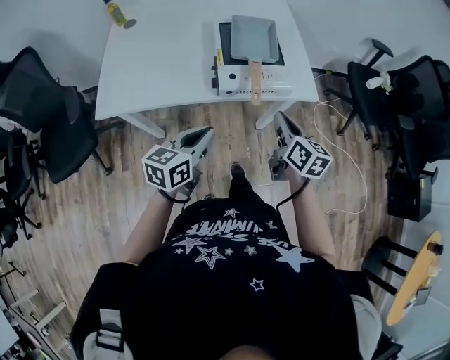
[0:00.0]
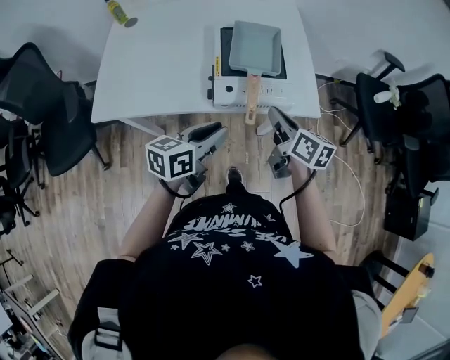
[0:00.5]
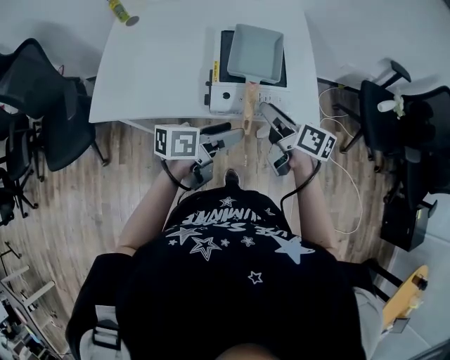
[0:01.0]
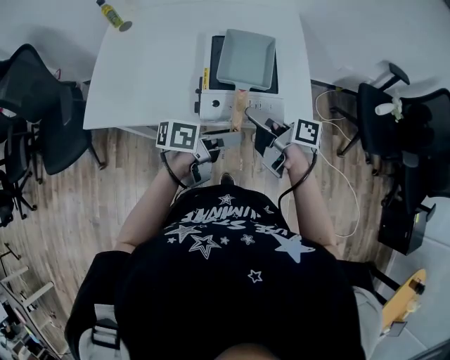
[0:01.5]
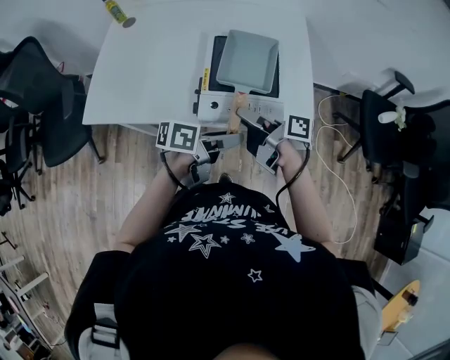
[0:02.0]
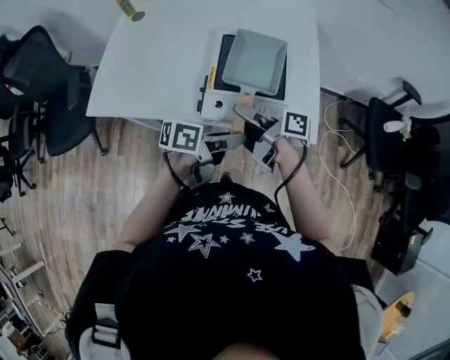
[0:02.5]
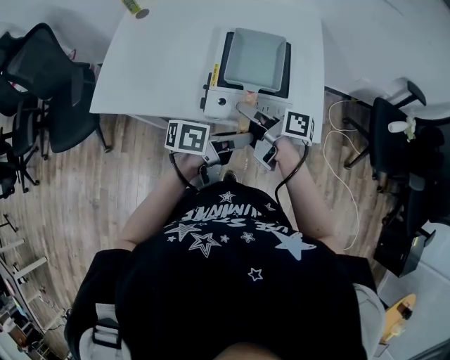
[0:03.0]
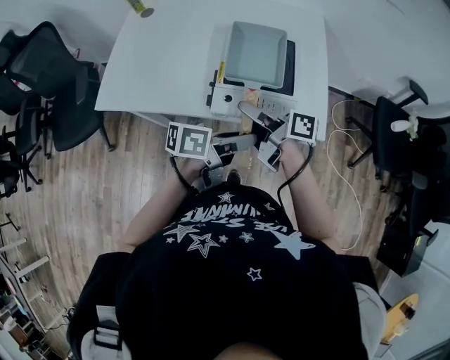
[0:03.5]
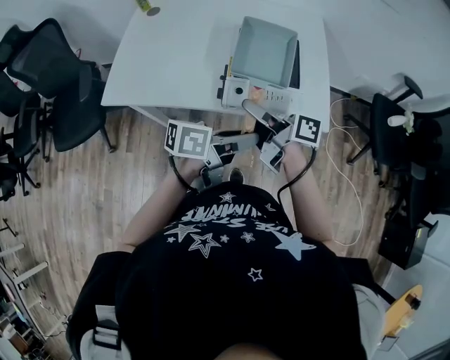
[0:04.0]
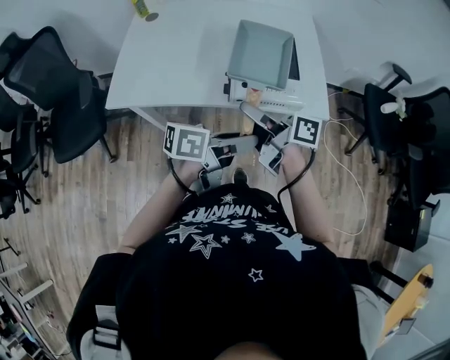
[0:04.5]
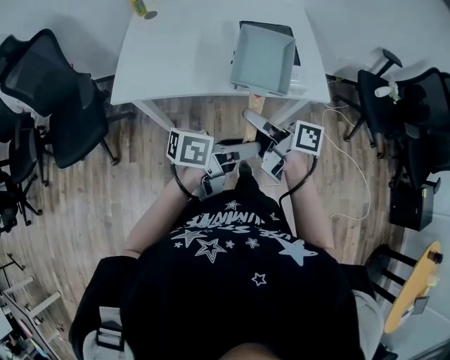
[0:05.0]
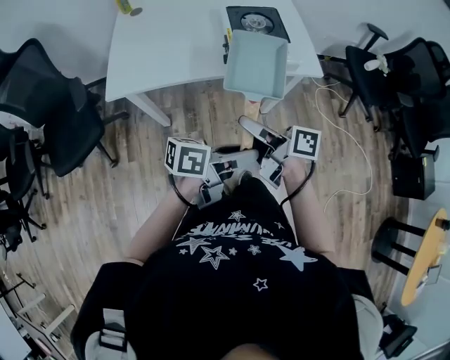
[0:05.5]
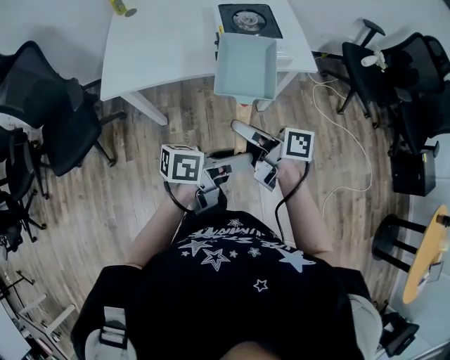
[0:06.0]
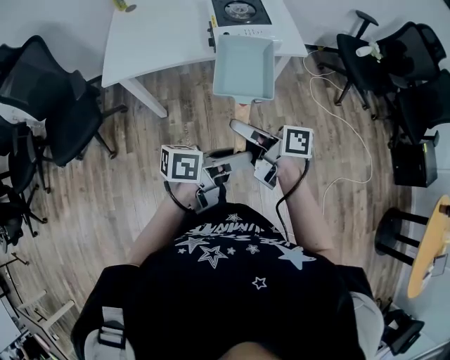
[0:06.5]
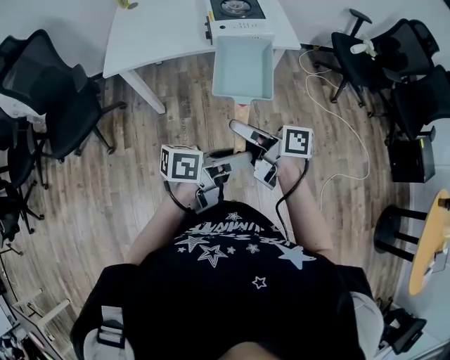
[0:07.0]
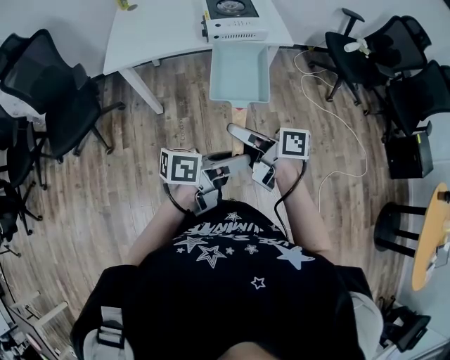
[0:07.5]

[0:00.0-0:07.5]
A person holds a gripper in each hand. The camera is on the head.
0:00.0 to 0:02.0: The left gripper shifts some 20 cm forward and to the right, swivels approximately 40 degrees, and opens its fingers. The right gripper moves forward and to the left, about 15 cm, rotates roughly 60 degrees, and opens its fingers.
0:02.0 to 0:04.0: The right gripper shifts approximately 10 cm upward, to the left and backward, and closes; the left gripper shifts roughly 10 cm backward and upward, and closes.
0:04.0 to 0:05.5: Both grippers travel together backward, approximately 25 cm.
0:05.5 to 0:07.5: The left gripper shifts by approximately 20 cm; the right gripper shifts by some 20 cm.

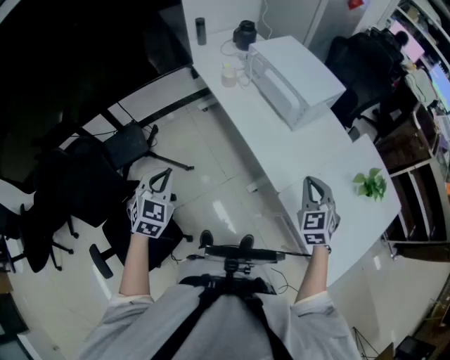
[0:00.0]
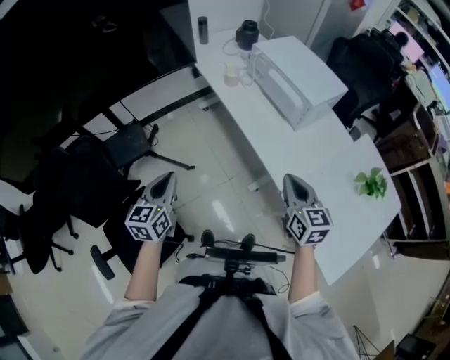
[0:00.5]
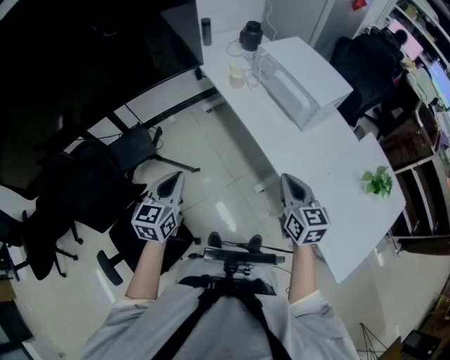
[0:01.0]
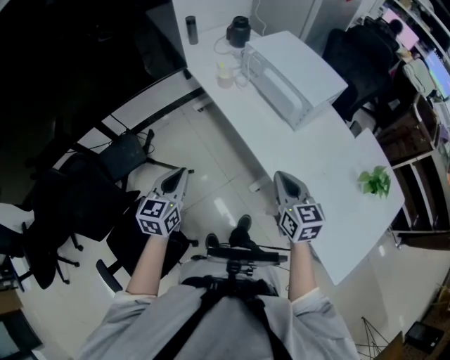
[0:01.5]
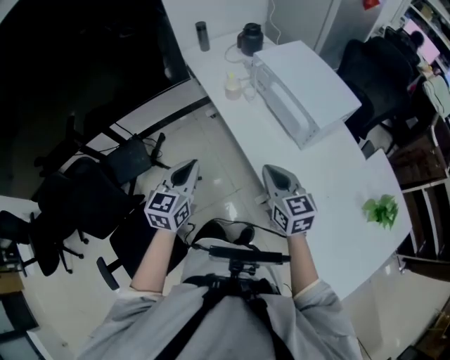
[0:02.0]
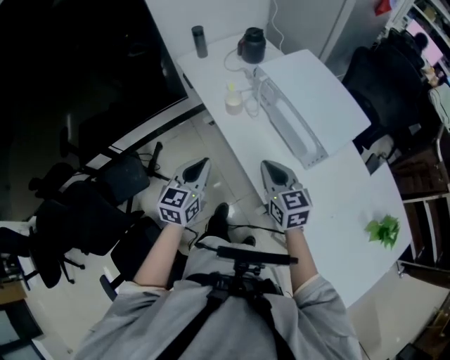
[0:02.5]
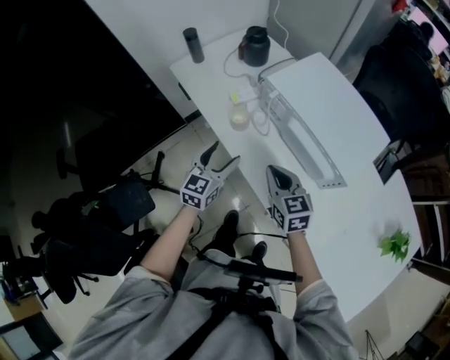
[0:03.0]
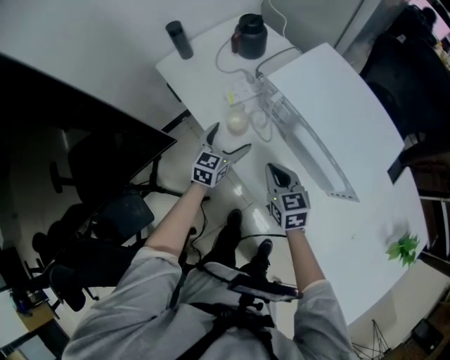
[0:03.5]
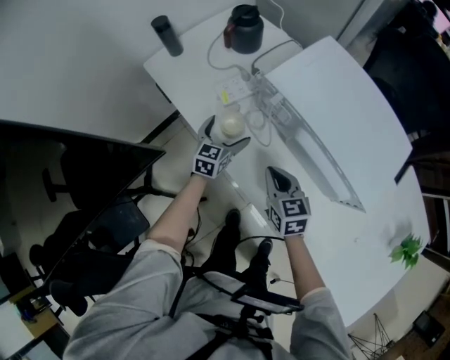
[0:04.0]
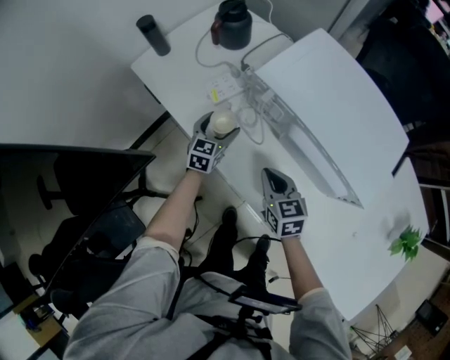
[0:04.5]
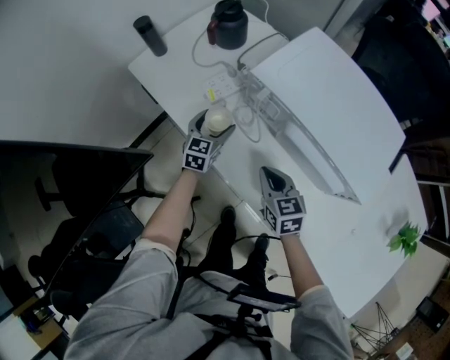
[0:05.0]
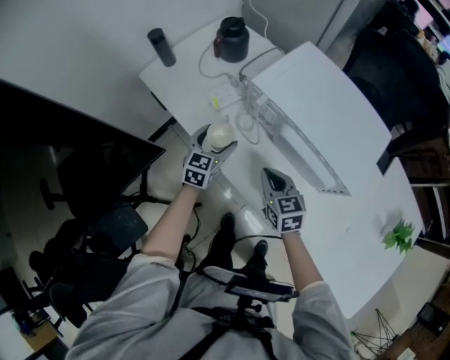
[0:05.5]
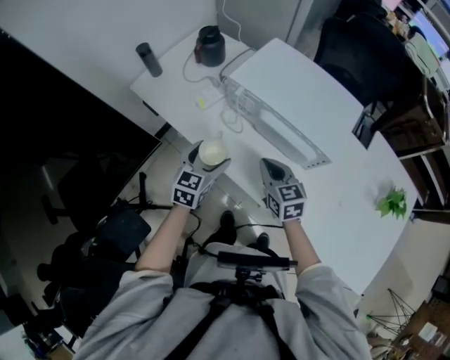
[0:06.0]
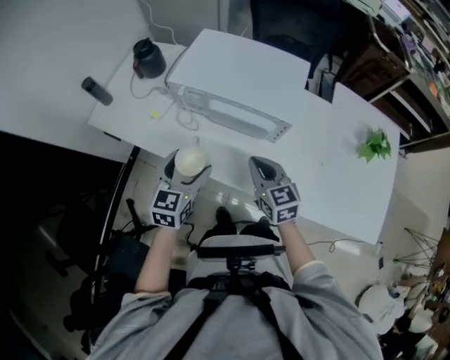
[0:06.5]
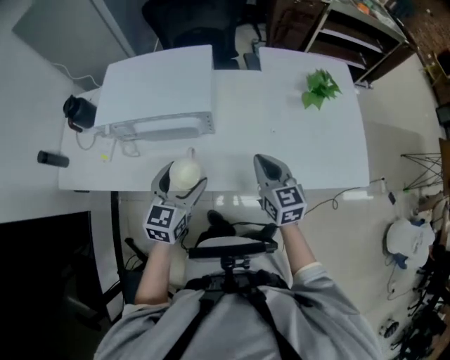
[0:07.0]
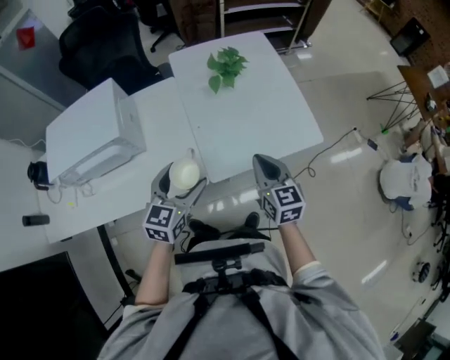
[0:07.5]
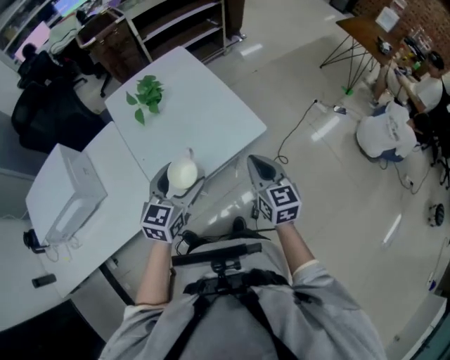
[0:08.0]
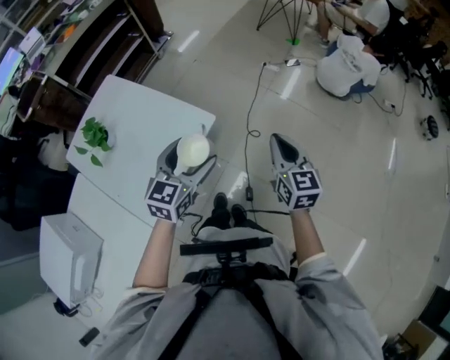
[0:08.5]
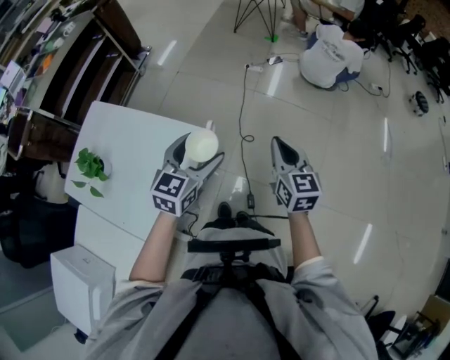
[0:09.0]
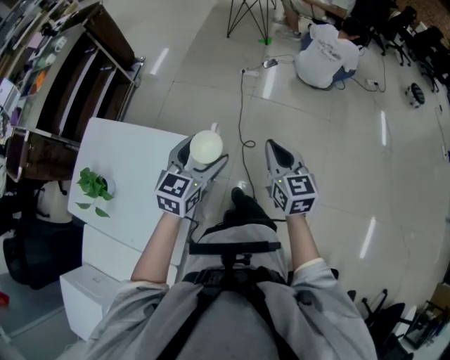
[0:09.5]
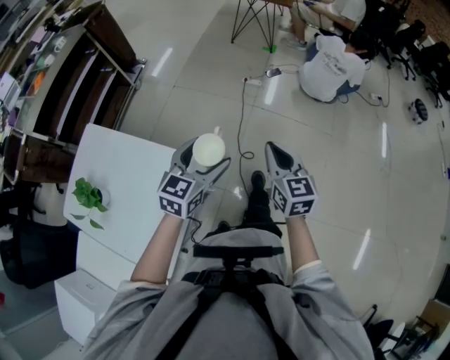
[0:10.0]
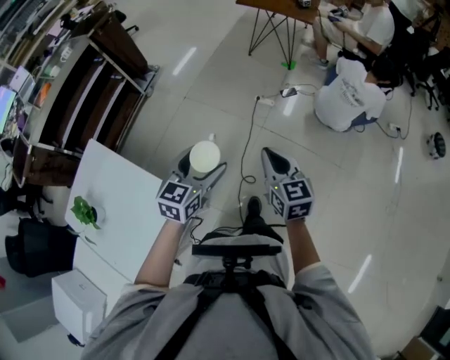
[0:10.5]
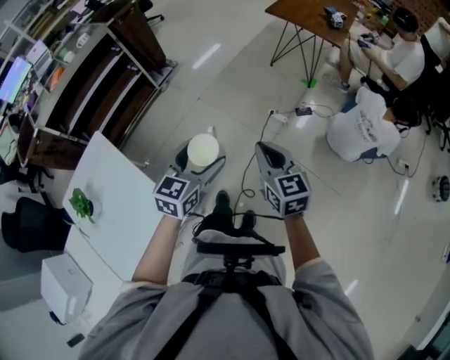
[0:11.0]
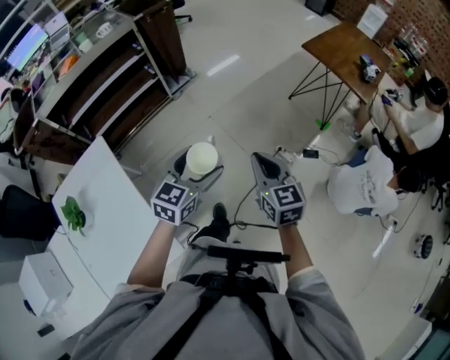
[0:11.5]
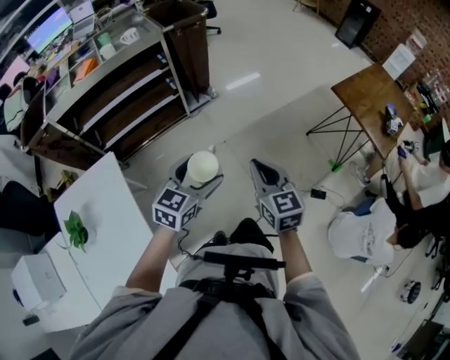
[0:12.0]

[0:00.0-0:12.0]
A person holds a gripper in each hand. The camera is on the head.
0:00.0 to 0:02.0: The left gripper is displaced forward and to the right by approximately 15 cm, and turns by some 30 degrees. The right gripper travels forward and to the left by about 20 cm, and rotates some 40 degrees.
0:02.0 to 0:04.0: Both grippers travel together forward and downward, about 50 cm. The left gripper opens up. The right gripper rotates about 20 degrees.
0:04.0 to 0:06.0: The right gripper shifts approximately 10 cm upward and backward; the left gripper travels upward and backward by roughly 25 cm.
0:06.0 to 0:08.0: The pair of grippers is taken roughly 70 cm. The right gripper swivels some 80 degrees; the left gripper swivels some 70 degrees.
0:08.0 to 0:10.0: The right gripper changes place by roughly 30 cm, and turns by roughly 40 degrees. Meanwhile the left gripper ends up about 40 cm from where it was, and rotates approximately 40 degrees.
0:10.0 to 0:12.0: The two grippers travel together, some 60 cm. The left gripper rotates about 40 degrees, while the right gripper rotates roughly 40 degrees.

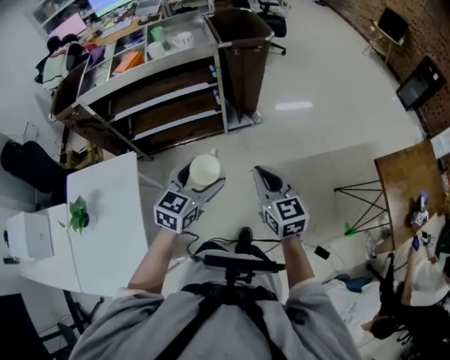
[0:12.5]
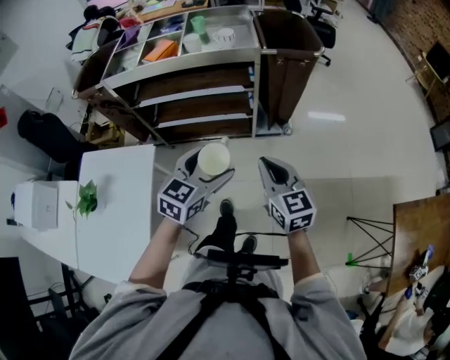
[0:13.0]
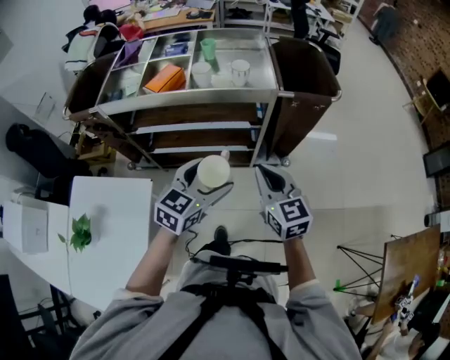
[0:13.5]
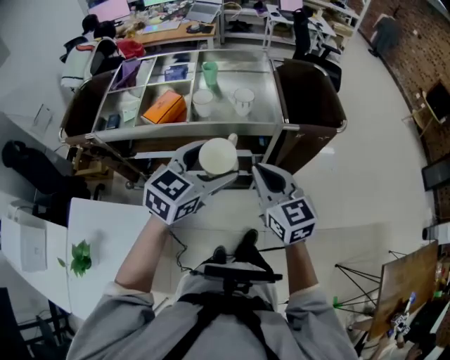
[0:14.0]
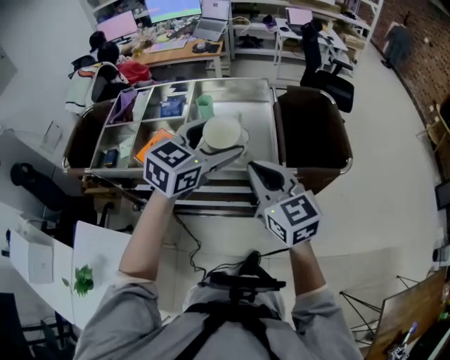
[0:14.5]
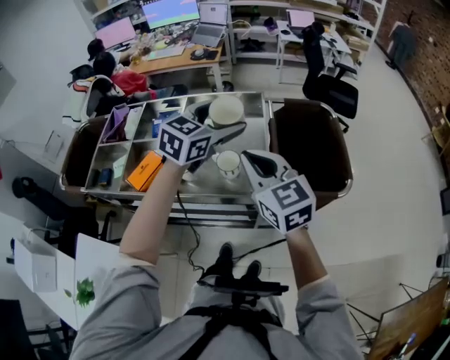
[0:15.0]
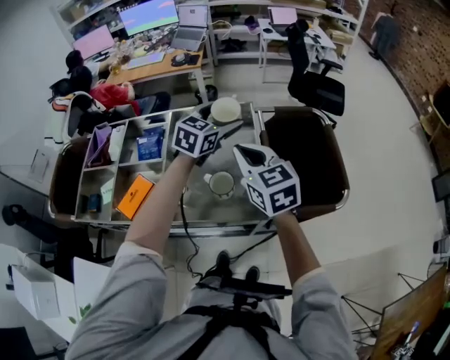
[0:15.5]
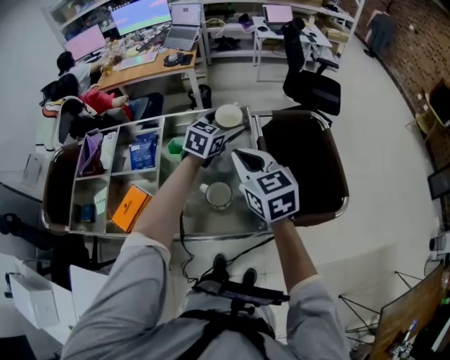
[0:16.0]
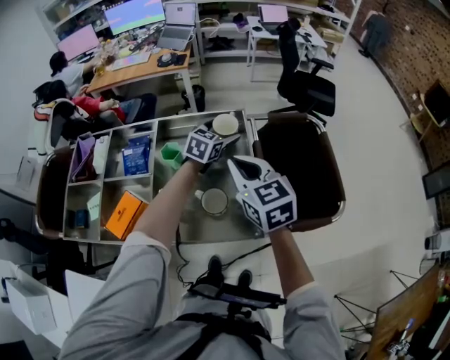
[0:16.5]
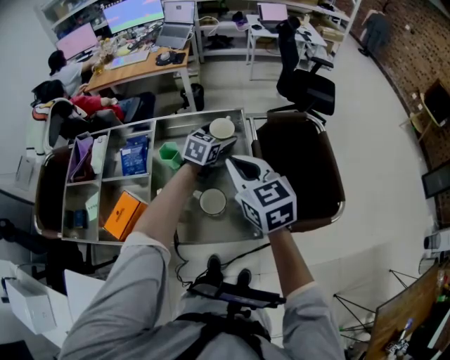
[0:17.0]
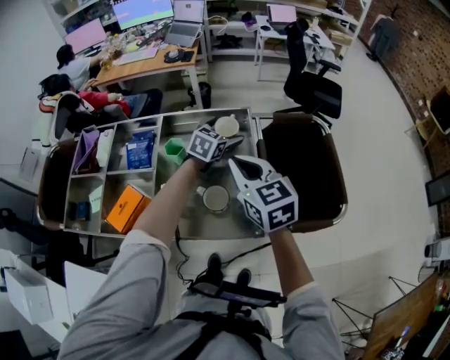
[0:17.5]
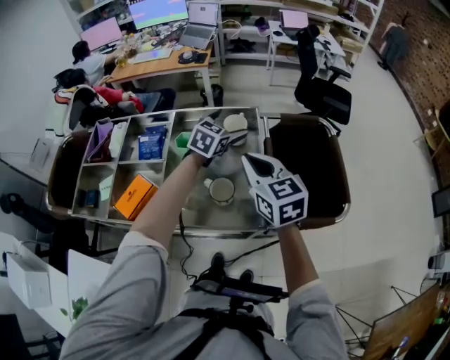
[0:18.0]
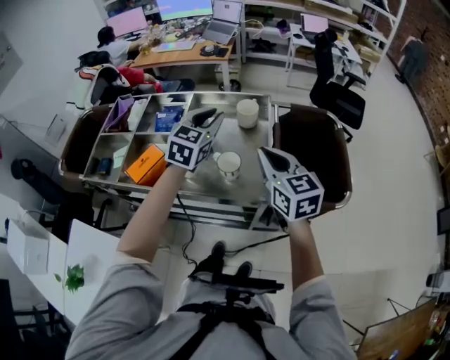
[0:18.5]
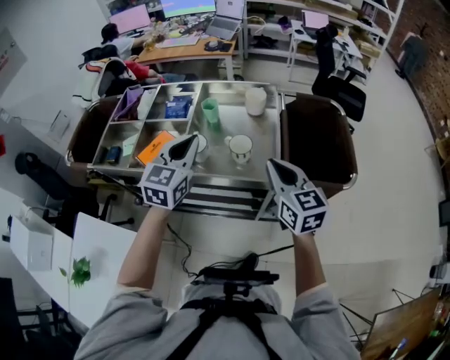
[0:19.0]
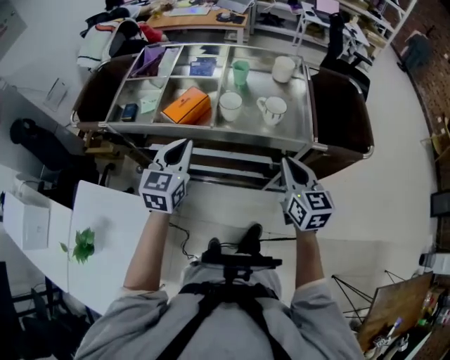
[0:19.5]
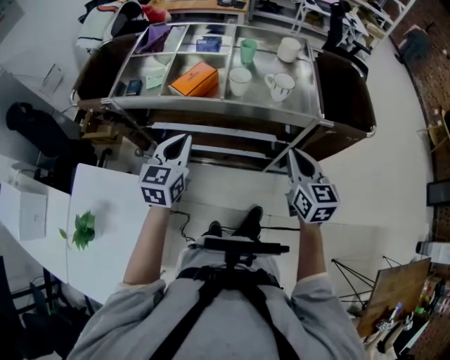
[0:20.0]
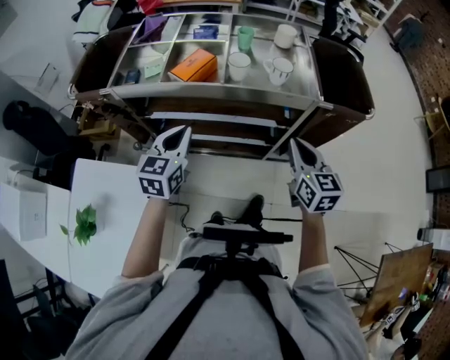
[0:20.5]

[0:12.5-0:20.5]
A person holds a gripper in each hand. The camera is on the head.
0:12.5 to 0:14.5: Both grippers are carried forward, some 60 cm. The right gripper rotates some 30 degrees.
0:14.5 to 0:16.5: The left gripper goes roughly 40 cm forward and downward, while the right gripper heads forward, covering approximately 25 cm.
0:16.5 to 0:18.5: The left gripper moves backward, upward and to the left, roughly 25 cm, turns by roughly 20 degrees, and closes up; the right gripper is displaced backward by approximately 10 cm.
0:18.5 to 0:20.5: The left gripper heads backward and to the left, covering about 40 cm, while the right gripper travels backward by approximately 25 cm.
